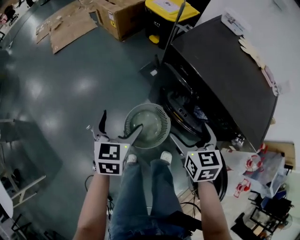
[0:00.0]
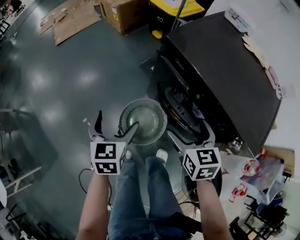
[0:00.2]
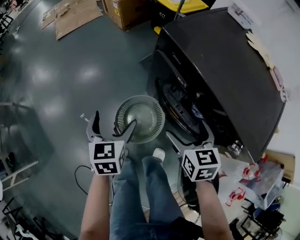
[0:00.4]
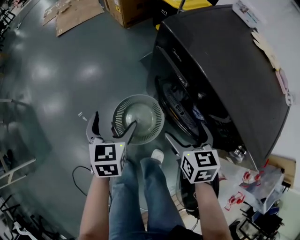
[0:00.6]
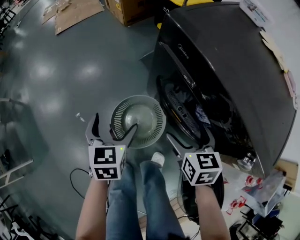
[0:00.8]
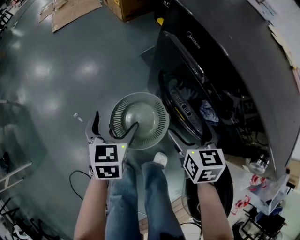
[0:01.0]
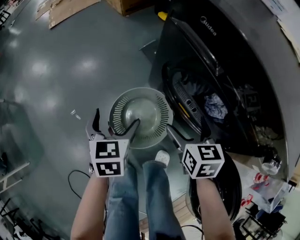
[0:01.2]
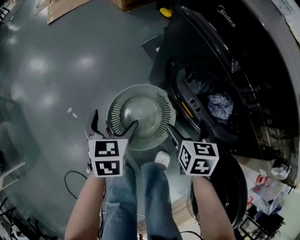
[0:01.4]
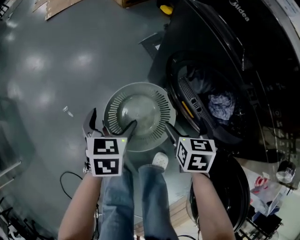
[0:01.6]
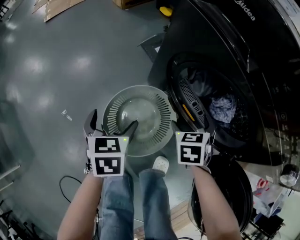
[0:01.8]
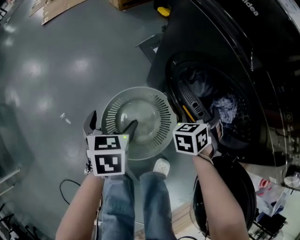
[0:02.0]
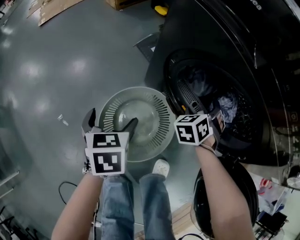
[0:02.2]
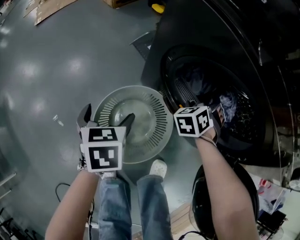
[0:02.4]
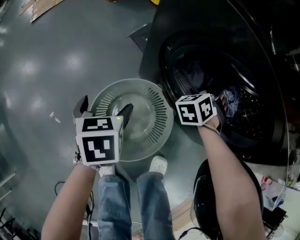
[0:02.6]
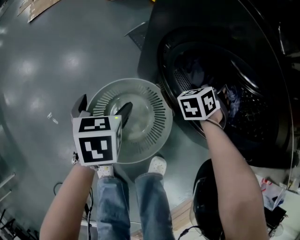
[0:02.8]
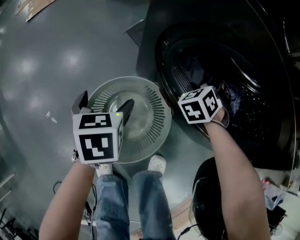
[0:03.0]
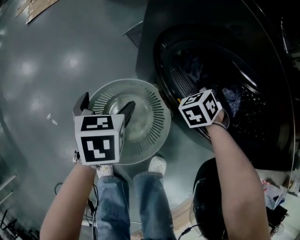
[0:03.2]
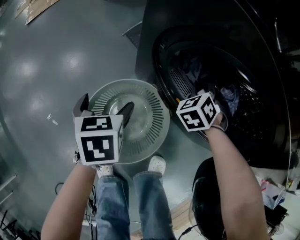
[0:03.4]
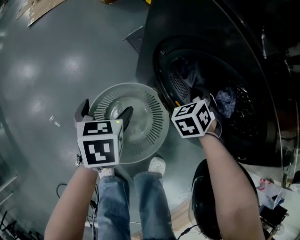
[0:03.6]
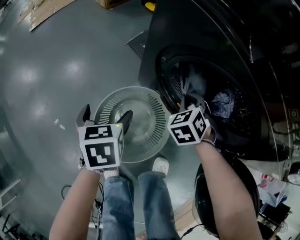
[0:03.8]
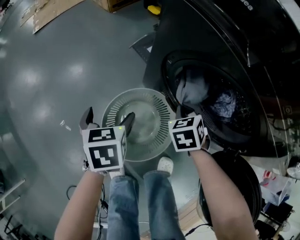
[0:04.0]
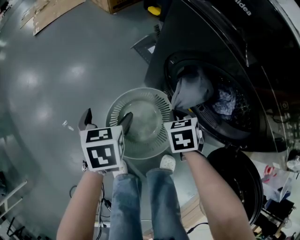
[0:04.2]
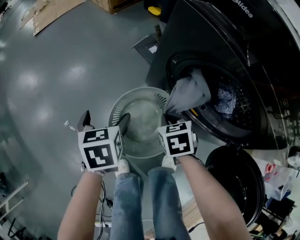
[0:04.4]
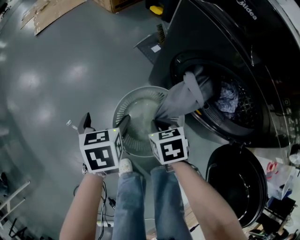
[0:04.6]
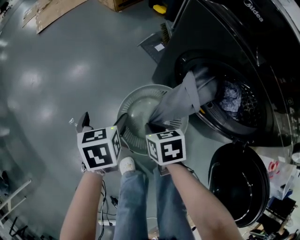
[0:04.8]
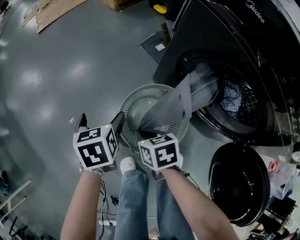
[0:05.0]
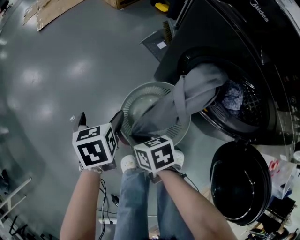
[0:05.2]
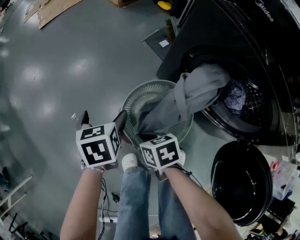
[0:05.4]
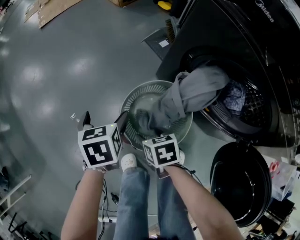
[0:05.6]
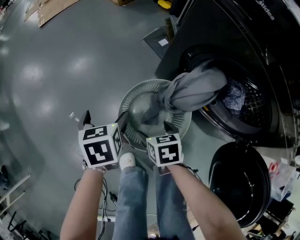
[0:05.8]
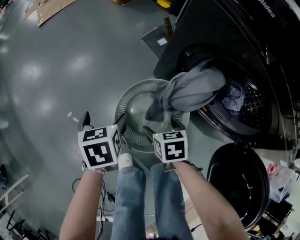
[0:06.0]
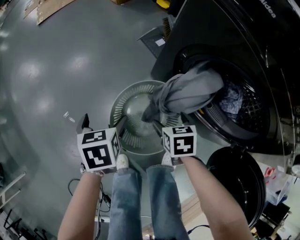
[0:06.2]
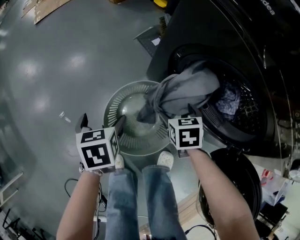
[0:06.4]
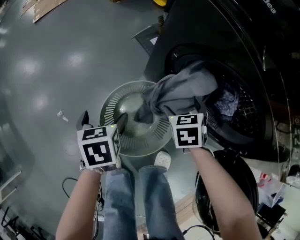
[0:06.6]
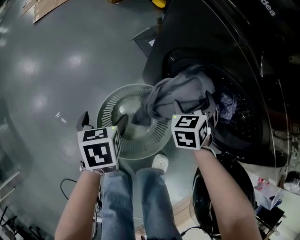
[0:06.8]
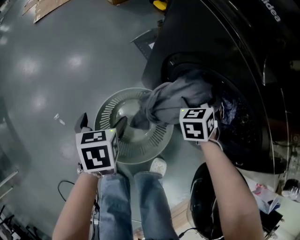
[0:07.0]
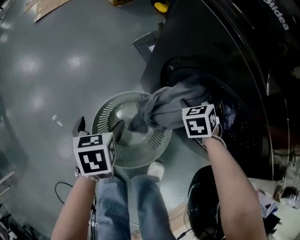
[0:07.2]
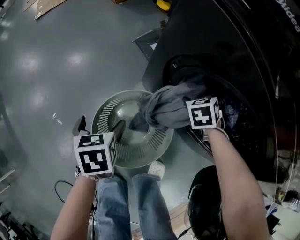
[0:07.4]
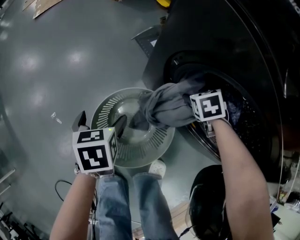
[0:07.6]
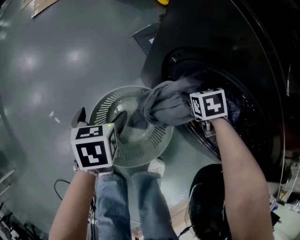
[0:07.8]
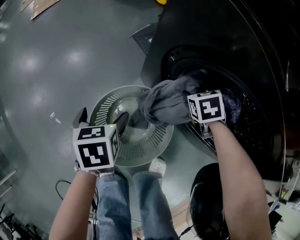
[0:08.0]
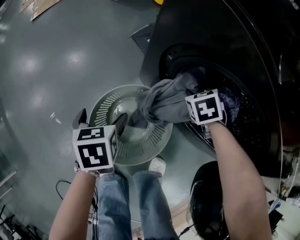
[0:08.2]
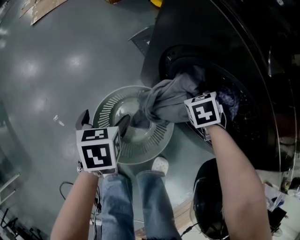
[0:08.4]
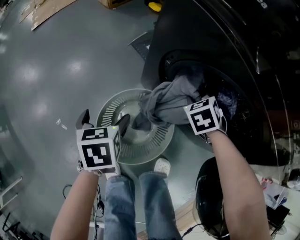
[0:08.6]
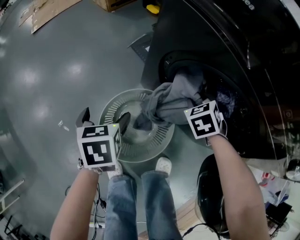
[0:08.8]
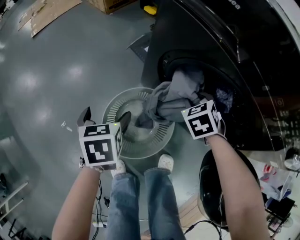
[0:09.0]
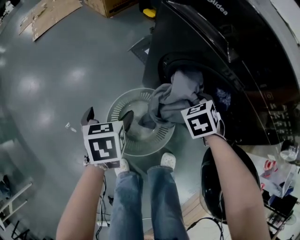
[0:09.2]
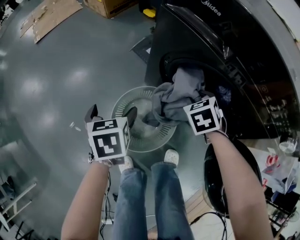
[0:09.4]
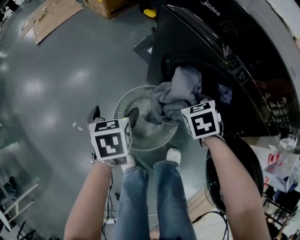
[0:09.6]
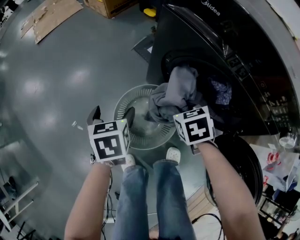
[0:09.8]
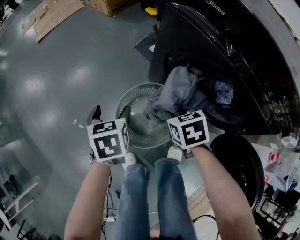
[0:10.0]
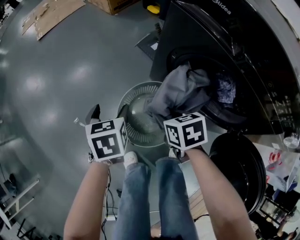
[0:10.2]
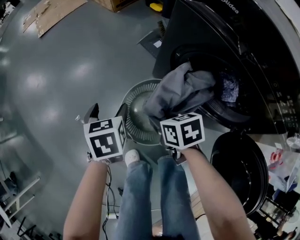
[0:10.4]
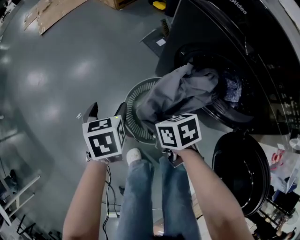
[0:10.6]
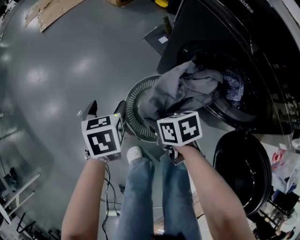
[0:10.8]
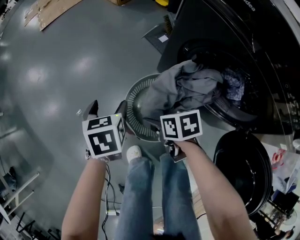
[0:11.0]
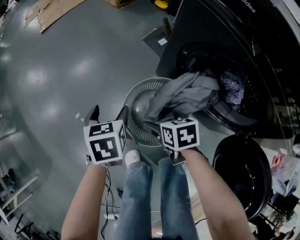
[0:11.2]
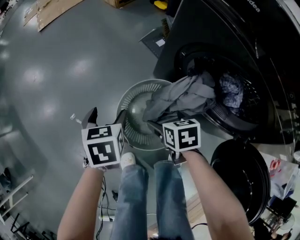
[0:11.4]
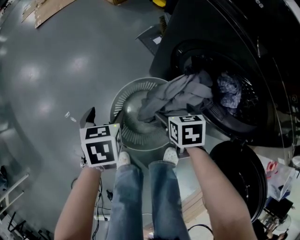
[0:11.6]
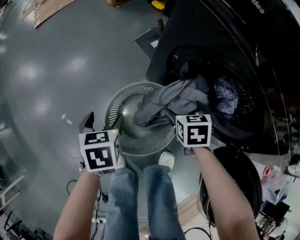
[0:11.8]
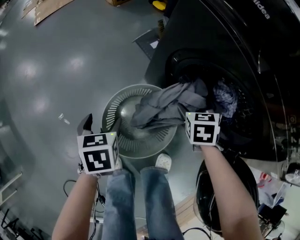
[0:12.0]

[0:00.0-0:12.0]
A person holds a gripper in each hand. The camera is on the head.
0:00.0 to 0:01.6: The grippers both shift downward by about 35 cm.
0:01.6 to 0:03.0: The right gripper goes about 20 cm forward and downward, and rolls counterclockwise, seen from behind, by some 40 degrees. Meanwhile the left gripper moves forward and downward, roughly 10 cm.
0:03.0 to 0:04.4: The left gripper goes roughly 10 cm to the left, upward and backward. Meanwhile the right gripper heads backward and to the left, covering about 25 cm, swivels approximately 40 degrees, and closes.
0:04.4 to 0:06.0: The right gripper opens its fingers; the left gripper ends up roughly 5 cm from where it was.
0:06.0 to 0:07.6: The right gripper moves about 5 cm upward and comes back, and rotates roughly 30 degrees. The left gripper changes place by roughly 10 cm.
0:07.6 to 0:09.0: The right gripper shifts roughly 15 cm upward and backward, and closes up, while the left gripper shifts about 10 cm upward.
0:09.0 to 0:10.4: The left gripper changes place by approximately 10 cm; the right gripper ends up roughly 25 cm from where it was, and rotates some 50 degrees.
0:10.4 to 0:12.0: The left gripper travels downward by about 5 cm. Meanwhile the right gripper shifts by about 25 cm, turns by approximately 40 degrees, and opens up.

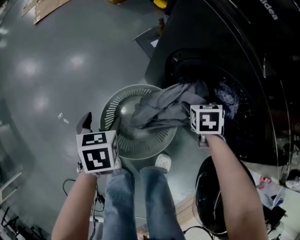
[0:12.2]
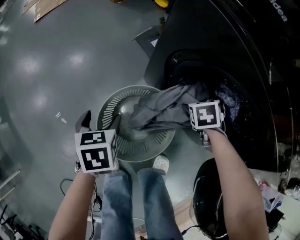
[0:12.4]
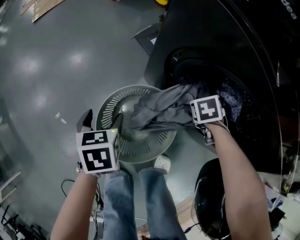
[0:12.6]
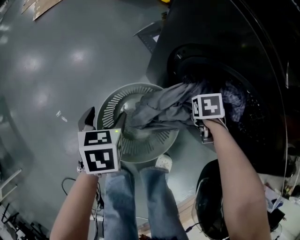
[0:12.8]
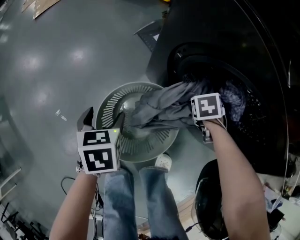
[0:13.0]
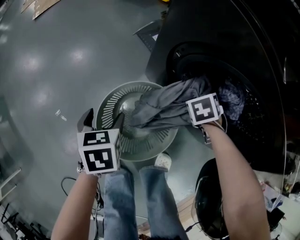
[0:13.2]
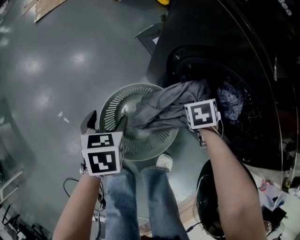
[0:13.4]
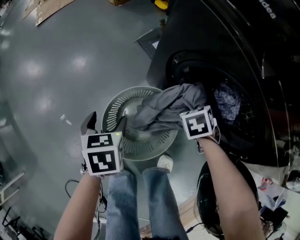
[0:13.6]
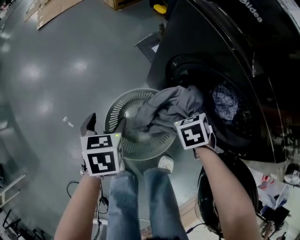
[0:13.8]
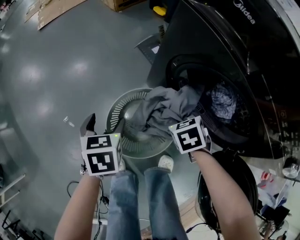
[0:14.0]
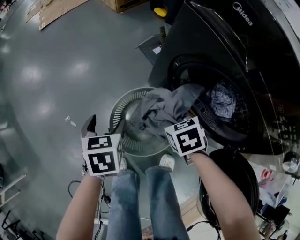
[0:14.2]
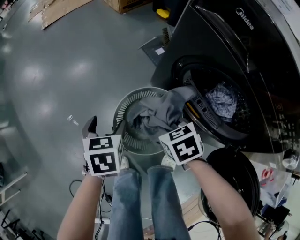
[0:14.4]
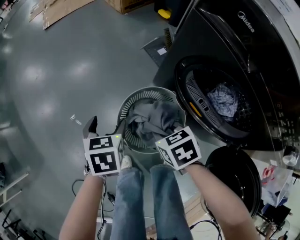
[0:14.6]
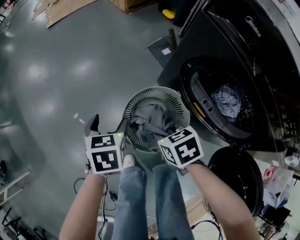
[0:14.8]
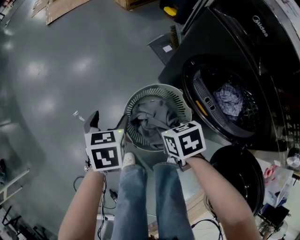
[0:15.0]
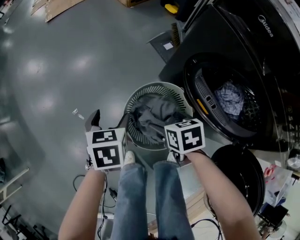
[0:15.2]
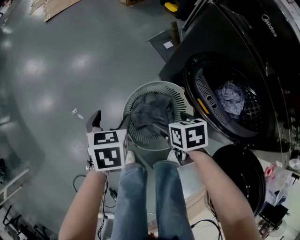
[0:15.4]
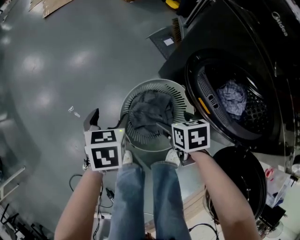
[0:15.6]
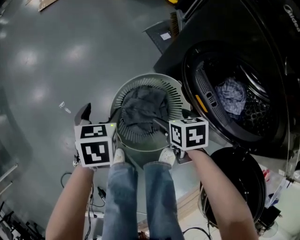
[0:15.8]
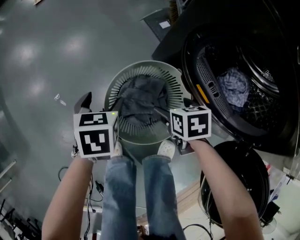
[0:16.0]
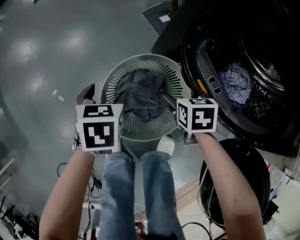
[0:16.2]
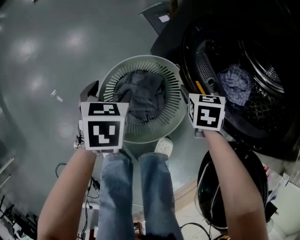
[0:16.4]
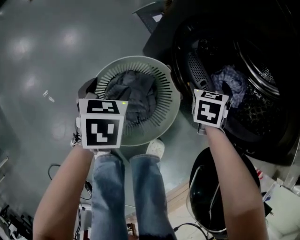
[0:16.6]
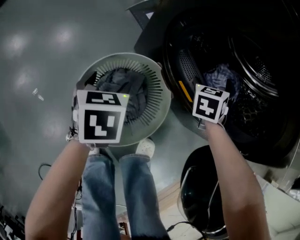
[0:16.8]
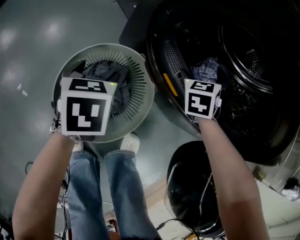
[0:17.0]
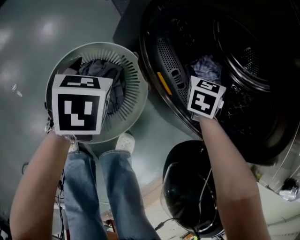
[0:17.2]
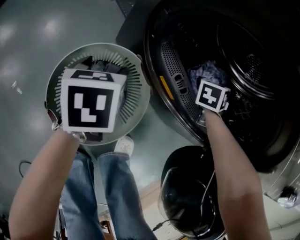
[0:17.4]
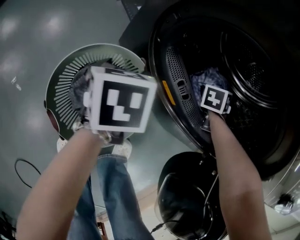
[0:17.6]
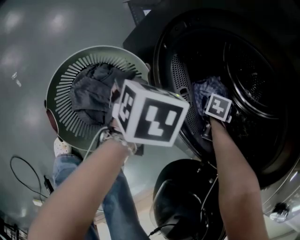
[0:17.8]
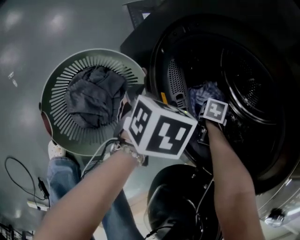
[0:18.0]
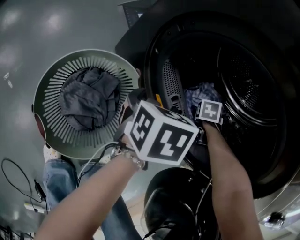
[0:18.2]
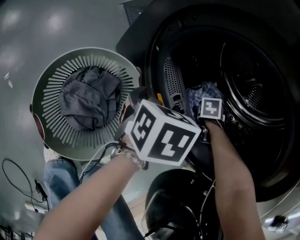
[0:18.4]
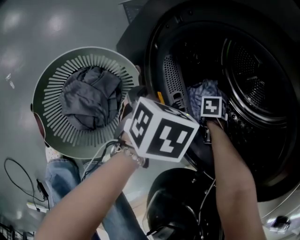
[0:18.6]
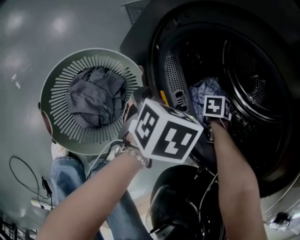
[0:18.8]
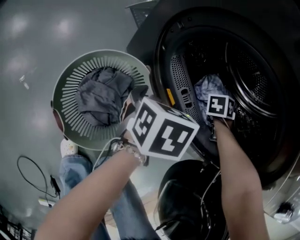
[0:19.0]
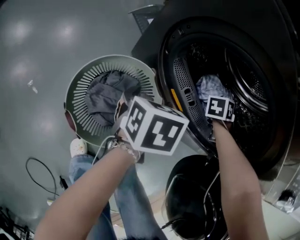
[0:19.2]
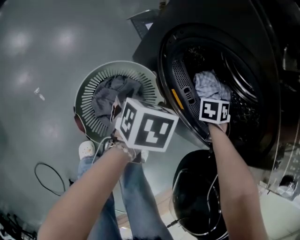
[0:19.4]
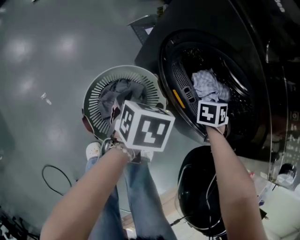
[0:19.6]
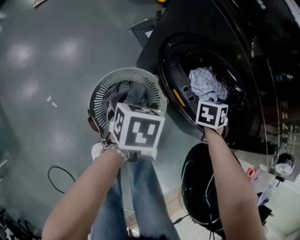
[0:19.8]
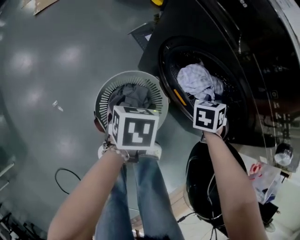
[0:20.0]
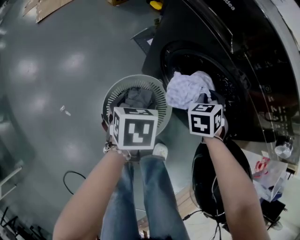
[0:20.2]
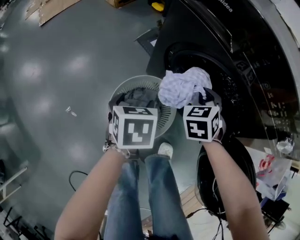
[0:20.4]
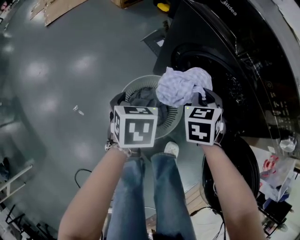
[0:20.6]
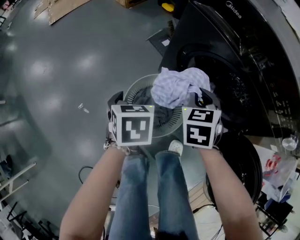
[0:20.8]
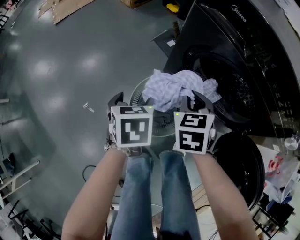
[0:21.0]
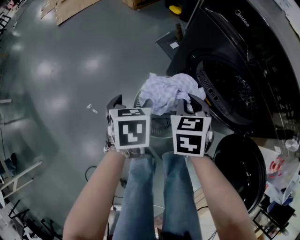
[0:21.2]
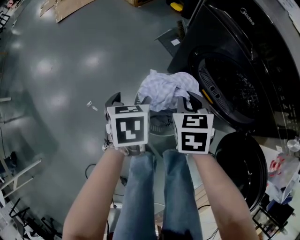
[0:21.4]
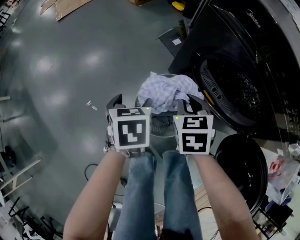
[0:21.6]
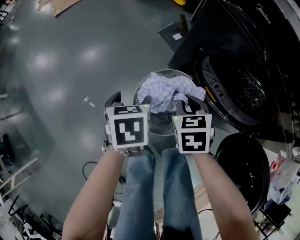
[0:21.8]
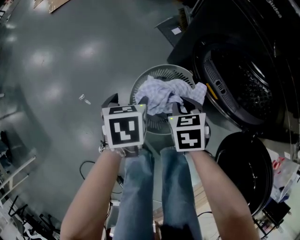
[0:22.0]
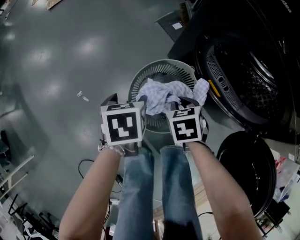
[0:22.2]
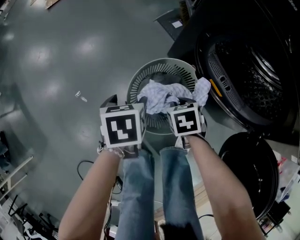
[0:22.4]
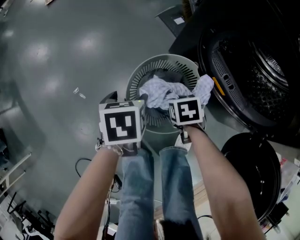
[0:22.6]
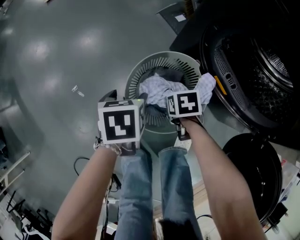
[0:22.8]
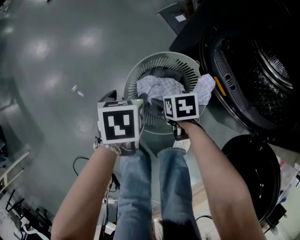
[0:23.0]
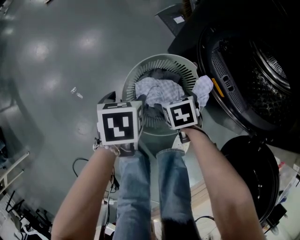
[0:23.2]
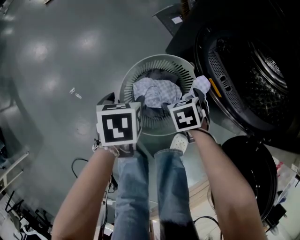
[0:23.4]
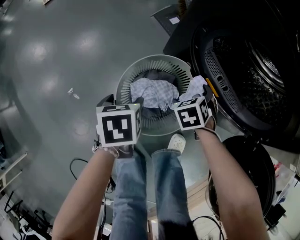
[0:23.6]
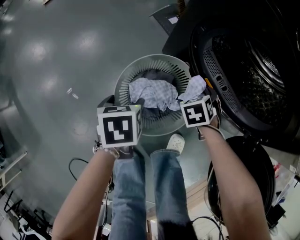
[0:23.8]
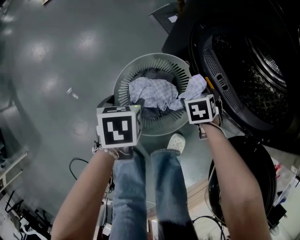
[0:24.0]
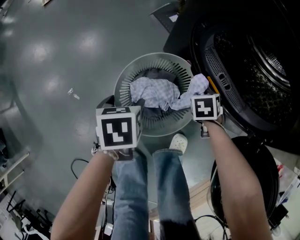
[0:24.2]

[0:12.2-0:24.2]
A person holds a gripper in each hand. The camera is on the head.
0:12.2 to 0:13.8: The right gripper goes downward and returns, roughly 10 cm each way, and closes.
0:13.8 to 0:15.2: The left gripper shifts by about 10 cm. The right gripper ends up some 20 cm from where it was, turns by some 30 degrees, and opens its fingers.
0:15.2 to 0:16.6: The right gripper changes place by approximately 30 cm, and swivels about 40 degrees. The left gripper changes place by about 15 cm.
0:16.6 to 0:18.2: The right gripper changes place by approximately 25 cm, and swivels some 30 degrees. The left gripper moves some 25 cm, and swivels about 20 degrees.
0:18.2 to 0:19.8: The left gripper goes about 15 cm backward and upward. The right gripper moves upward and backward, approximately 20 cm, and closes its fingers.
0:19.8 to 0:21.2: The left gripper moves about 20 cm, while the right gripper moves about 30 cm, and changes its angle by some 30 degrees.
0:21.2 to 0:22.6: The left gripper shifts about 15 cm downward, while the right gripper is displaced downward by about 25 cm, and turns by some 30 degrees.
0:22.6 to 0:24.2: The right gripper shifts by about 15 cm, swivels approximately 20 degrees, and opens and closes again.
